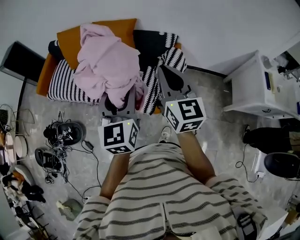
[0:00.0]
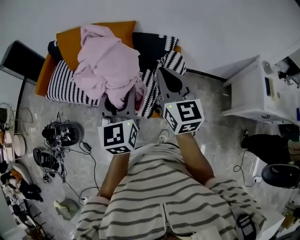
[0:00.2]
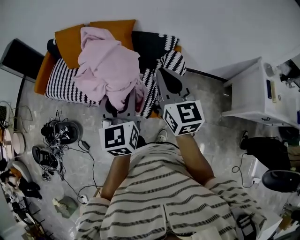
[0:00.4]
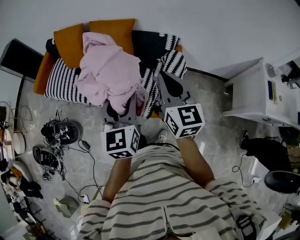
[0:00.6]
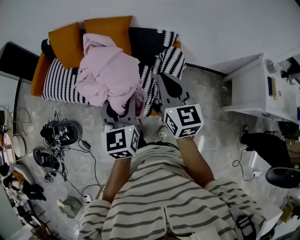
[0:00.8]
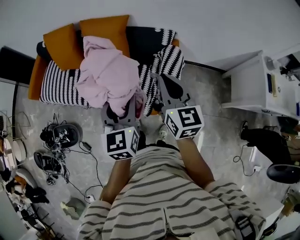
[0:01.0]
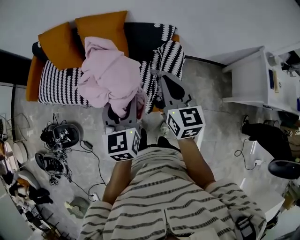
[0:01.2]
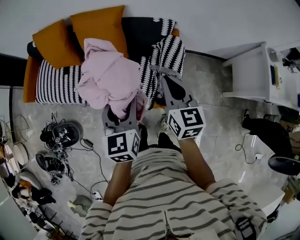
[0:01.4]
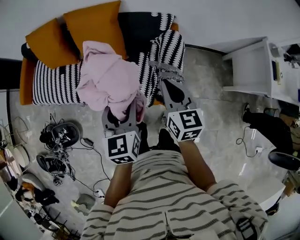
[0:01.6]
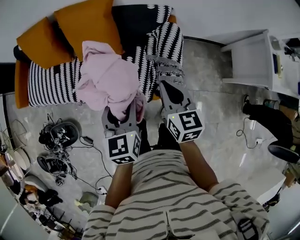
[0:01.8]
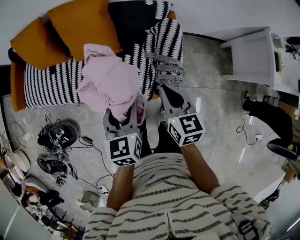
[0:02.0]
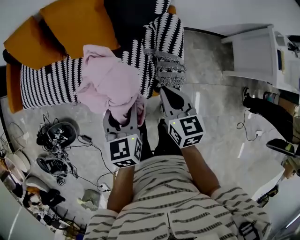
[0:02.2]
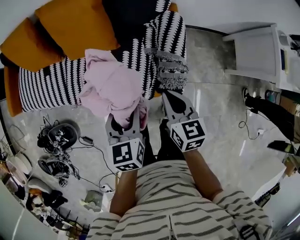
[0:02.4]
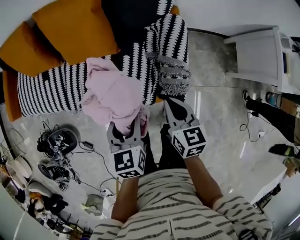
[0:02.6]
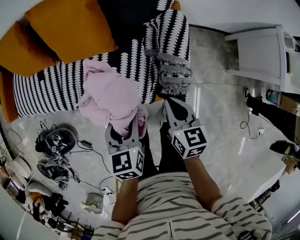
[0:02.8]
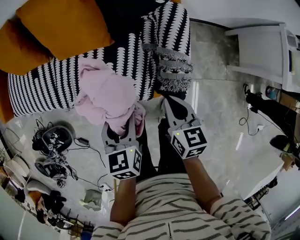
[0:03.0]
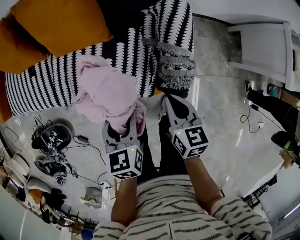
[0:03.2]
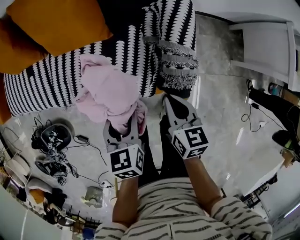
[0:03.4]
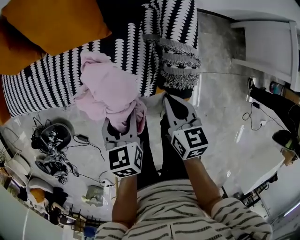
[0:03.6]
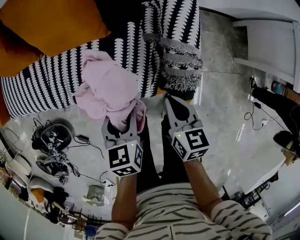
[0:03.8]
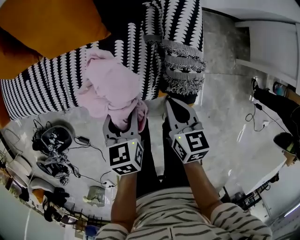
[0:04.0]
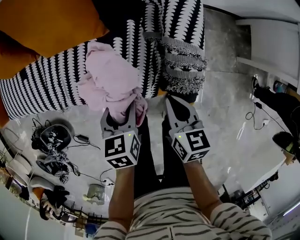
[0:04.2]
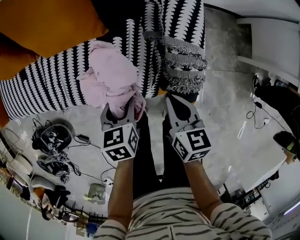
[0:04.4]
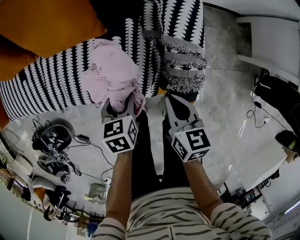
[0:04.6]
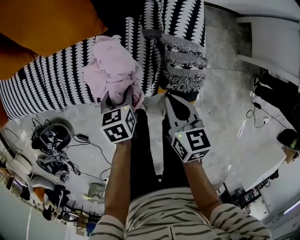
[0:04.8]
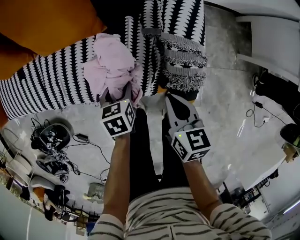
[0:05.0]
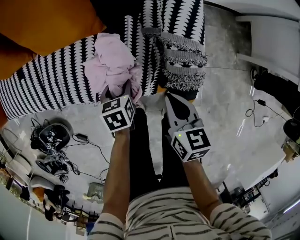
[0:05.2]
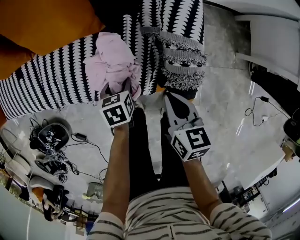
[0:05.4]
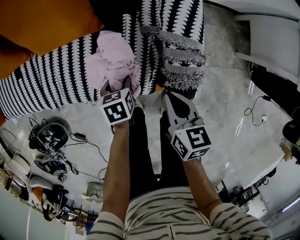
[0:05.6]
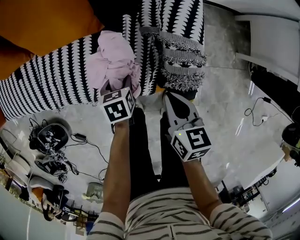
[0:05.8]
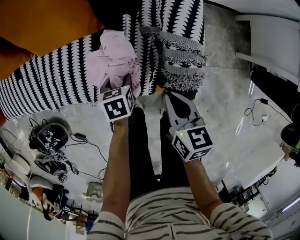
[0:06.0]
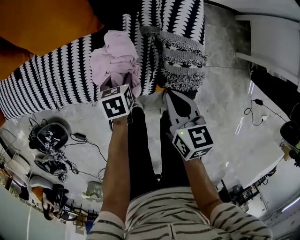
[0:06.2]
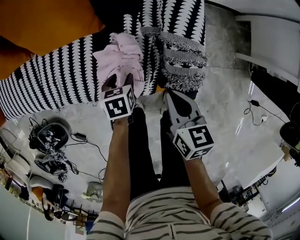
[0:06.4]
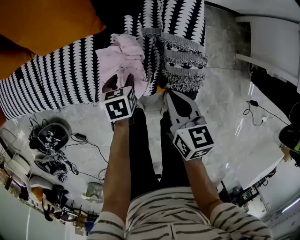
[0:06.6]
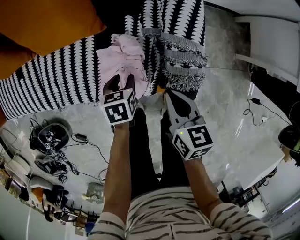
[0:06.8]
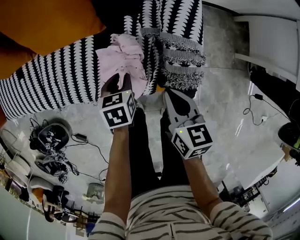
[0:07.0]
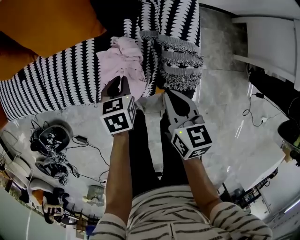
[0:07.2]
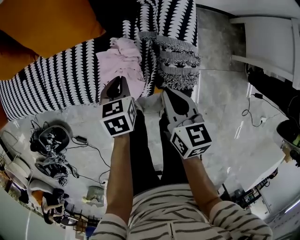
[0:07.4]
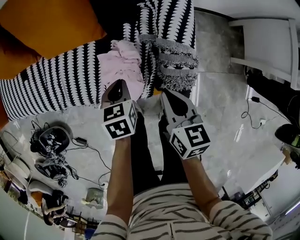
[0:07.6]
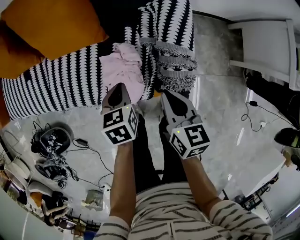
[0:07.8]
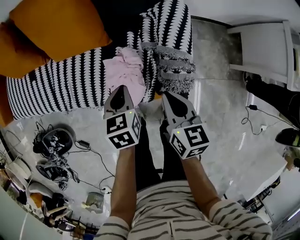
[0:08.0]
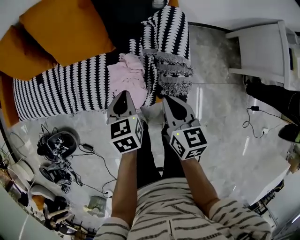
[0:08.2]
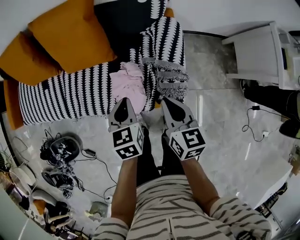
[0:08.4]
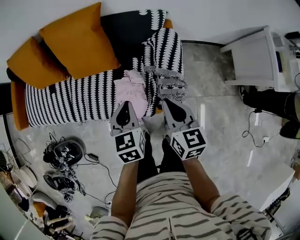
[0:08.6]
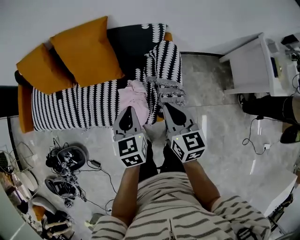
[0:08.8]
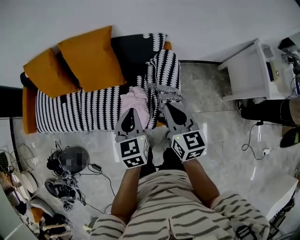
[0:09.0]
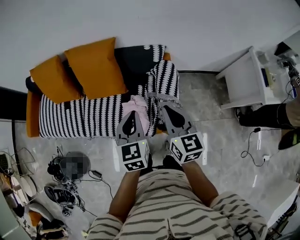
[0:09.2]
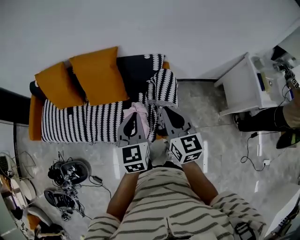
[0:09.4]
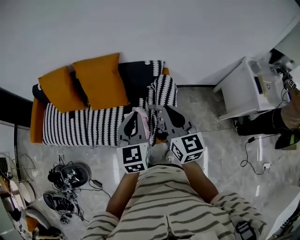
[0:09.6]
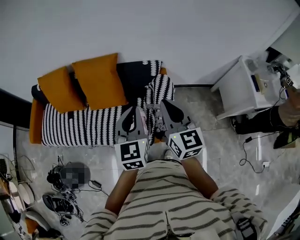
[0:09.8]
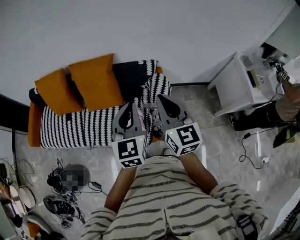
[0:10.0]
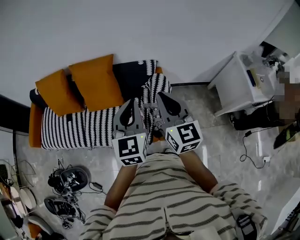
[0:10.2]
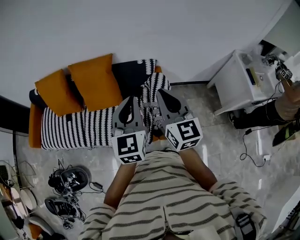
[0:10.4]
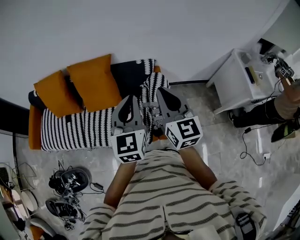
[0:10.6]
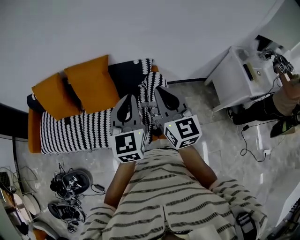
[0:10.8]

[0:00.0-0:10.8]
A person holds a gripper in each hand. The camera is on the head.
0:00.0 to 0:01.6: The grippers both shift downward and forward by some 20 cm. The left gripper swivels roughly 20 degrees, while the right gripper swivels about 20 degrees.
0:01.6 to 0:03.0: Both grippers travel together downward, some 20 cm.
0:03.0 to 0:04.6: The right gripper moves downward, some 10 cm, while the left gripper is displaced downward by roughly 20 cm.
0:04.6 to 0:06.2: The left gripper heads downward, covering approximately 10 cm.
0:06.2 to 0:07.8: The left gripper moves upward, approximately 15 cm, and closes its fingers. The right gripper goes about 5 cm upward.
0:07.8 to 0:09.2: The grippers both shift upward by about 35 cm. The left gripper swivels roughly 30 degrees, while the right gripper changes its angle by approximately 20 degrees.
0:09.2 to 0:10.8: Both grippers move upward, roughly 15 cm. The left gripper swivels about 20 degrees.

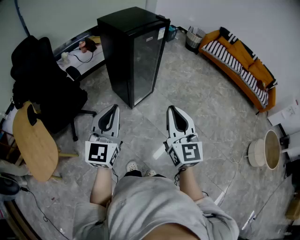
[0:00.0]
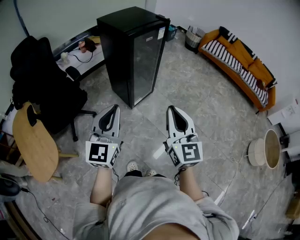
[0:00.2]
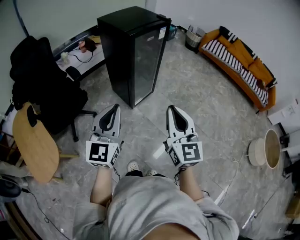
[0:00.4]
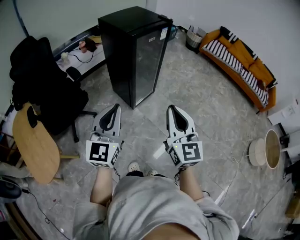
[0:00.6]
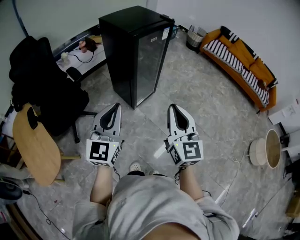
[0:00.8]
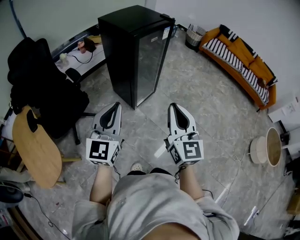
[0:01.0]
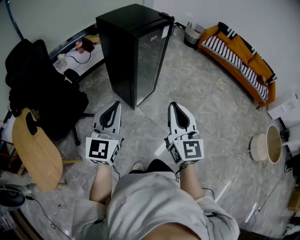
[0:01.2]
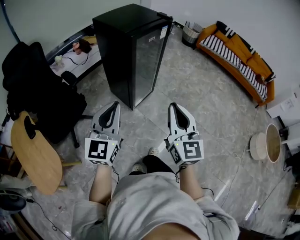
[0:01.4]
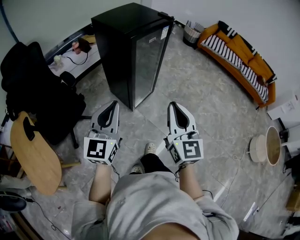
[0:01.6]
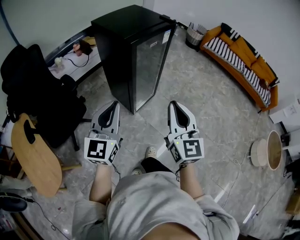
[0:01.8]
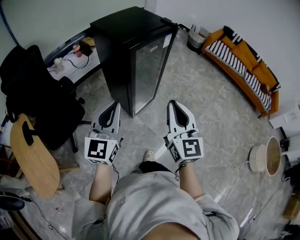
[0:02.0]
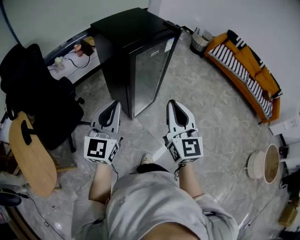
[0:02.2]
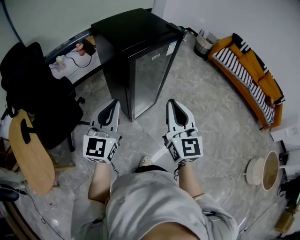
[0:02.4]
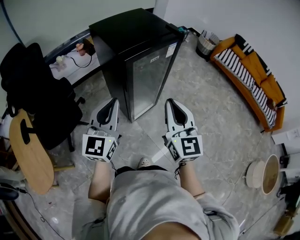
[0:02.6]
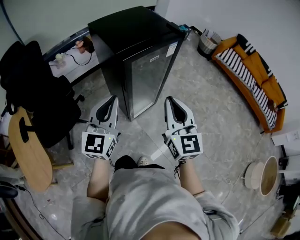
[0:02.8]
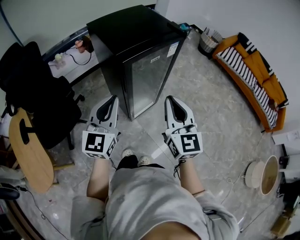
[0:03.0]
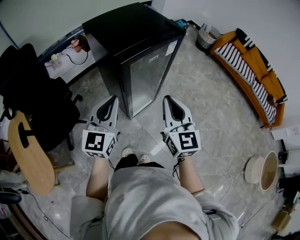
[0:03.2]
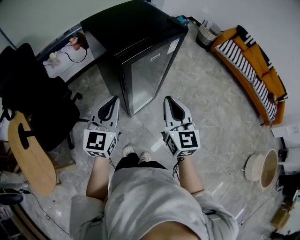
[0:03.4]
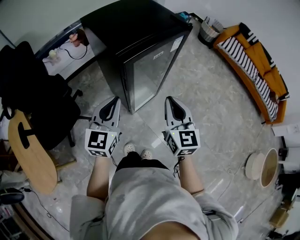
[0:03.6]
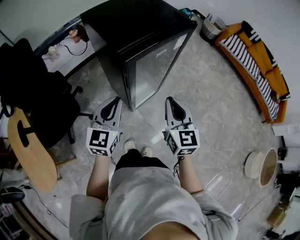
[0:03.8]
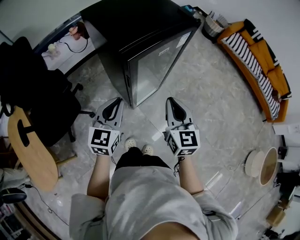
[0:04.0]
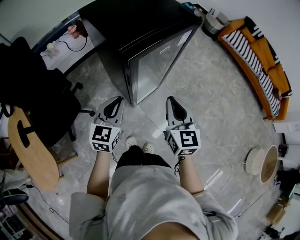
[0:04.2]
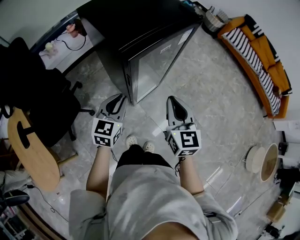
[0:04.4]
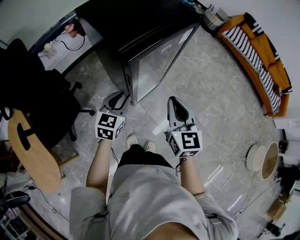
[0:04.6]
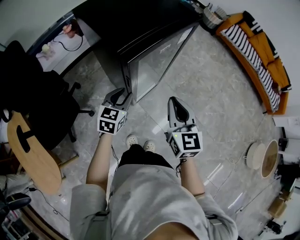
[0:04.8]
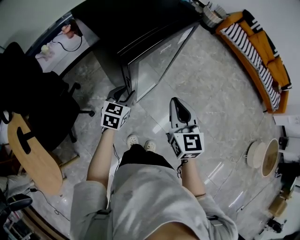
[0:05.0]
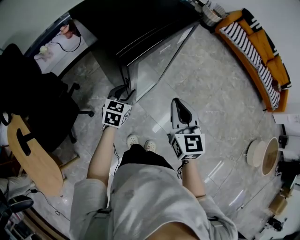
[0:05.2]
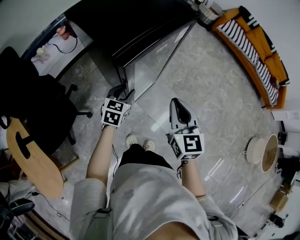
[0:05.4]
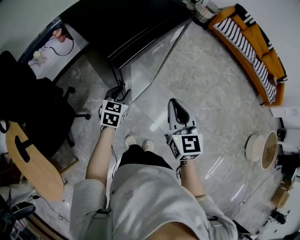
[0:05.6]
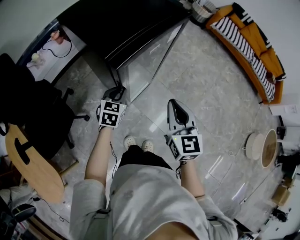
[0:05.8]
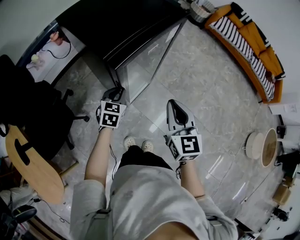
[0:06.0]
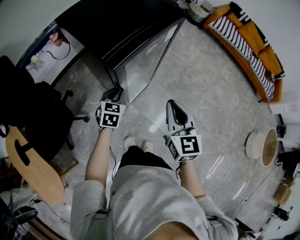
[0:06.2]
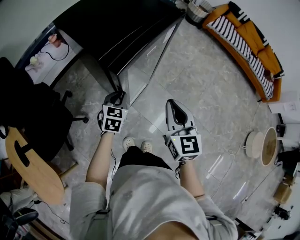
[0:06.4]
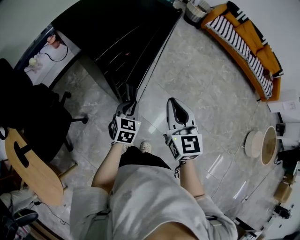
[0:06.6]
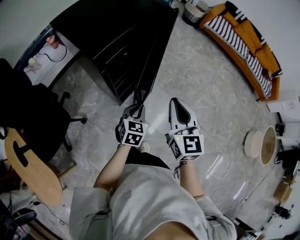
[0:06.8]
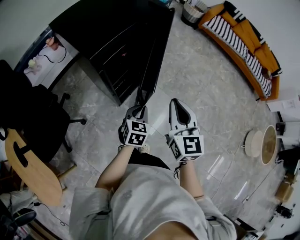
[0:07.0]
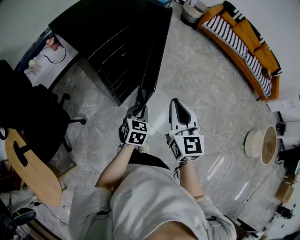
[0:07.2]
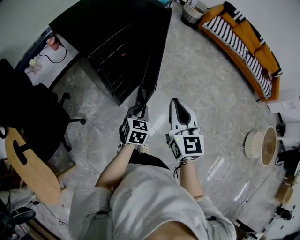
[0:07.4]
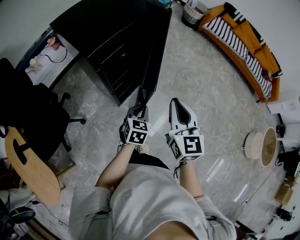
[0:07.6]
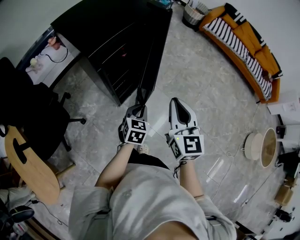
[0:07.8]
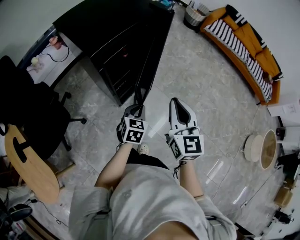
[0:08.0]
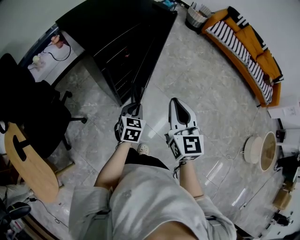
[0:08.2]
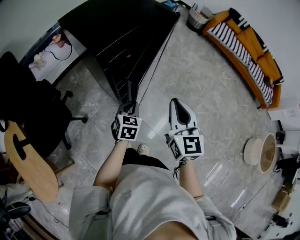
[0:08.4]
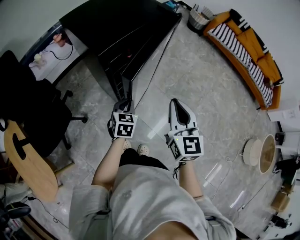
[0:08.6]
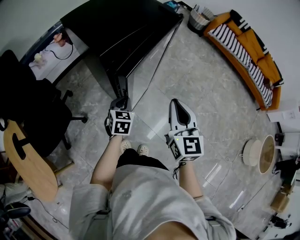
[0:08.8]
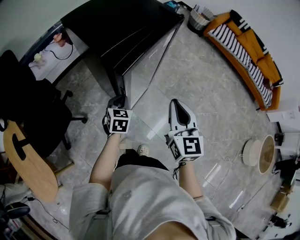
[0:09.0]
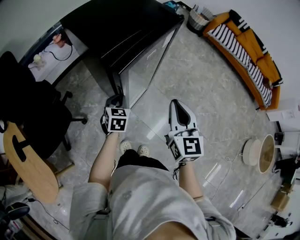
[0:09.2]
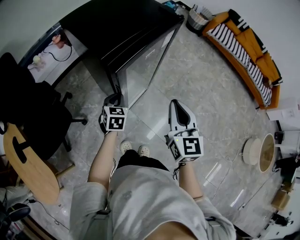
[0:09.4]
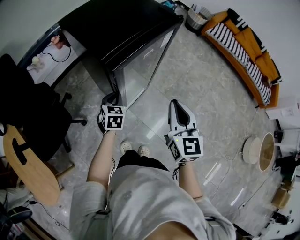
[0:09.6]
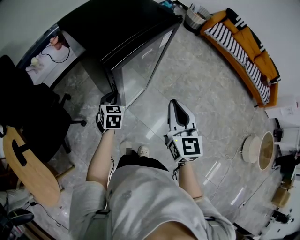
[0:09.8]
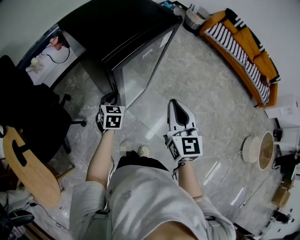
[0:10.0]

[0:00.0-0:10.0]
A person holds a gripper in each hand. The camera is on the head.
0:00.0 to 0:01.4: The two grippers go roughly 5 cm forward.
0:01.4 to 0:02.8: The two grippers go roughly 25 cm forward.
0:02.8 to 0:04.2: The grippers both shift downward and forward by some 15 cm. The left gripper turns by approximately 20 degrees.
0:04.2 to 0:05.8: The left gripper travels downward and forward by roughly 15 cm, rotates about 20 degrees, and opens, then closes once more.
0:05.8 to 0:07.2: The left gripper goes roughly 20 cm to the right and backward; the right gripper goes approximately 5 cm to the right.
0:07.2 to 0:08.6: The left gripper moves to the left, roughly 10 cm.
0:08.6 to 0:10.0: The left gripper heads to the left, covering approximately 5 cm.

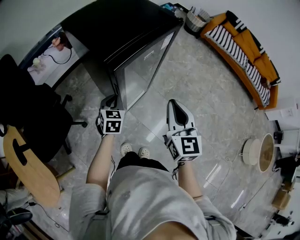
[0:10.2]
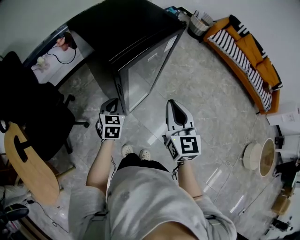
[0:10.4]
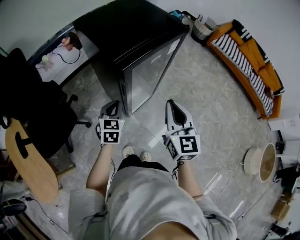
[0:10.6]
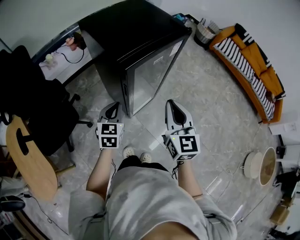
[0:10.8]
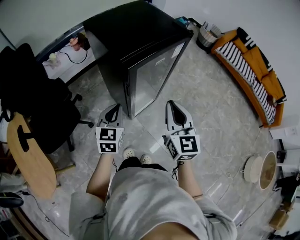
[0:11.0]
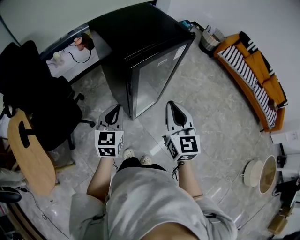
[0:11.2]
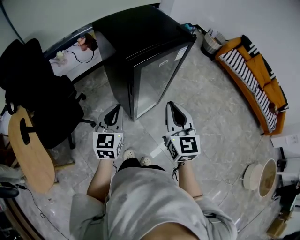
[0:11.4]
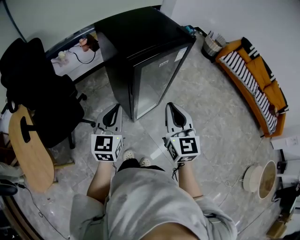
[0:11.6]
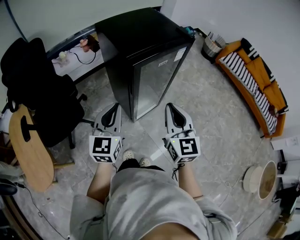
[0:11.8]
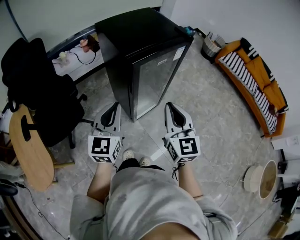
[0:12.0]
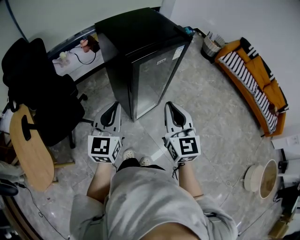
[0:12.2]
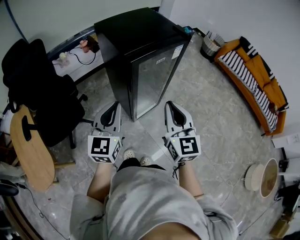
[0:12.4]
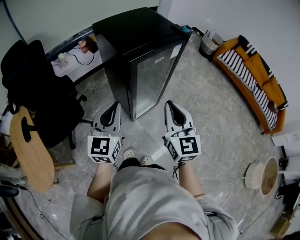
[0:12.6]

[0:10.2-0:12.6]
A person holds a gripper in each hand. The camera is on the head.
0:10.2 to 0:11.4: The right gripper ends up some 5 cm from where it was. Meanwhile the left gripper travels upward and backward by some 20 cm, and swivels roughly 20 degrees.
0:11.4 to 0:12.6: The left gripper is displaced upward by roughly 5 cm.
